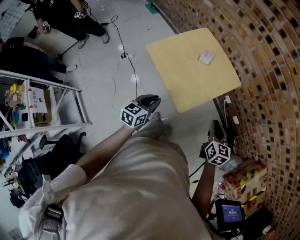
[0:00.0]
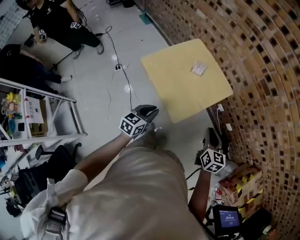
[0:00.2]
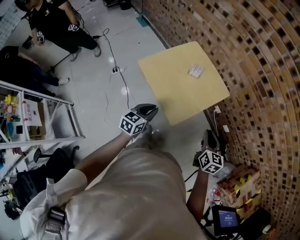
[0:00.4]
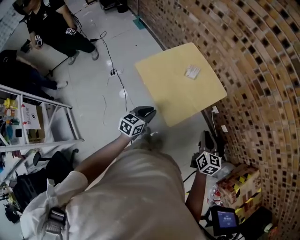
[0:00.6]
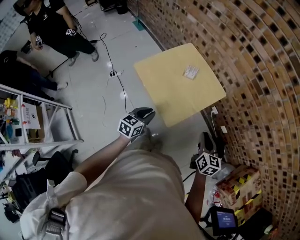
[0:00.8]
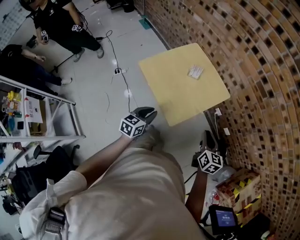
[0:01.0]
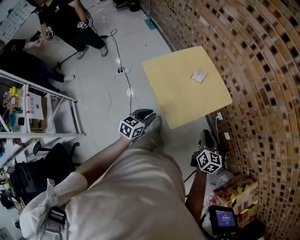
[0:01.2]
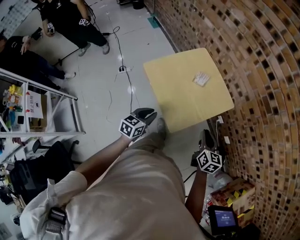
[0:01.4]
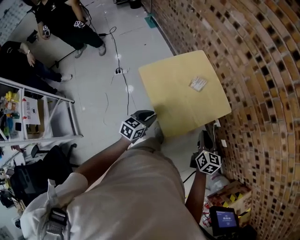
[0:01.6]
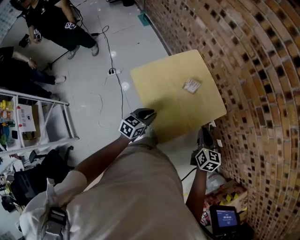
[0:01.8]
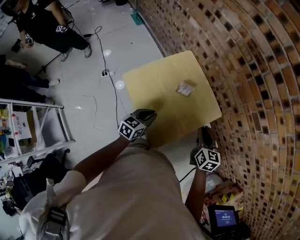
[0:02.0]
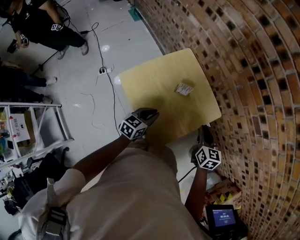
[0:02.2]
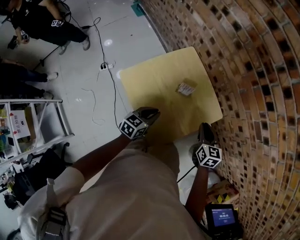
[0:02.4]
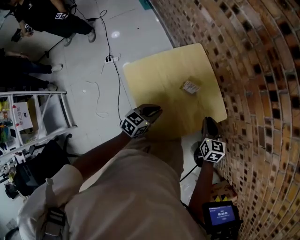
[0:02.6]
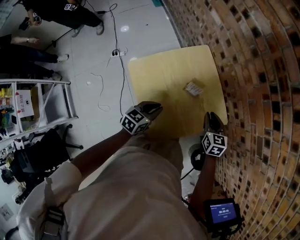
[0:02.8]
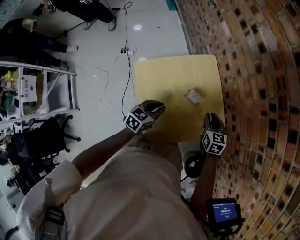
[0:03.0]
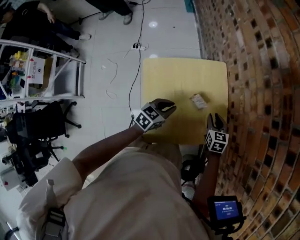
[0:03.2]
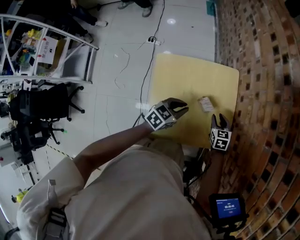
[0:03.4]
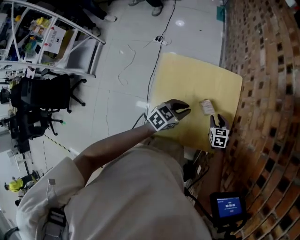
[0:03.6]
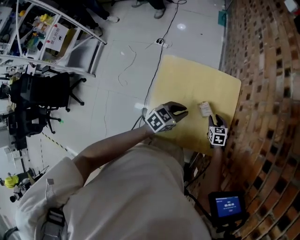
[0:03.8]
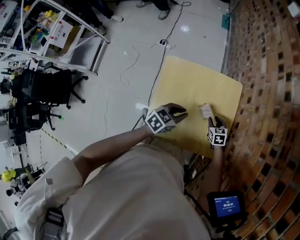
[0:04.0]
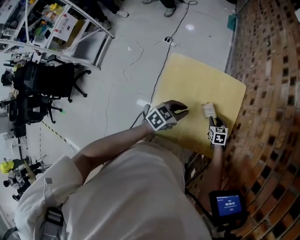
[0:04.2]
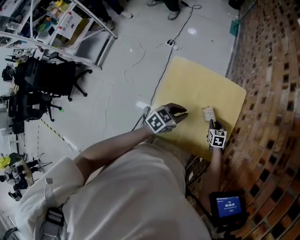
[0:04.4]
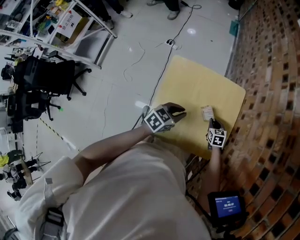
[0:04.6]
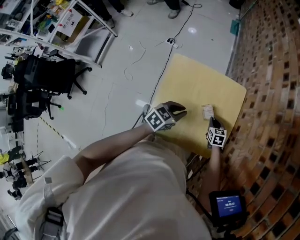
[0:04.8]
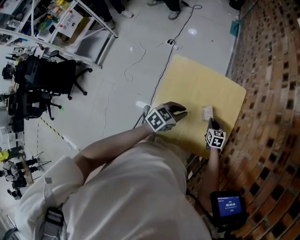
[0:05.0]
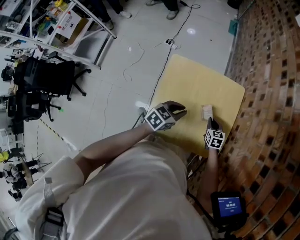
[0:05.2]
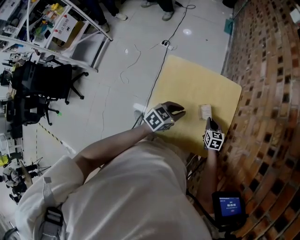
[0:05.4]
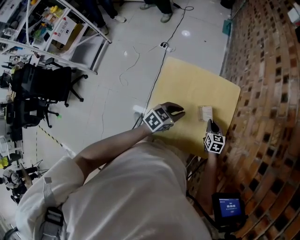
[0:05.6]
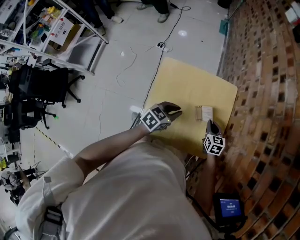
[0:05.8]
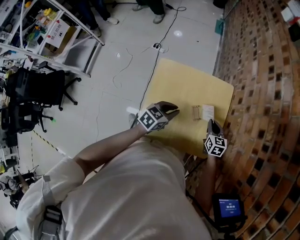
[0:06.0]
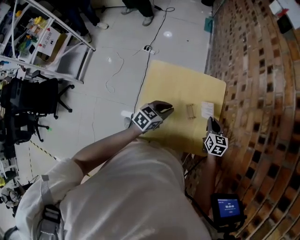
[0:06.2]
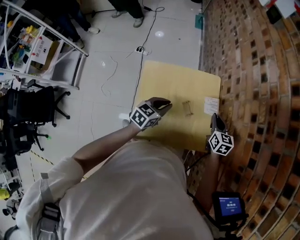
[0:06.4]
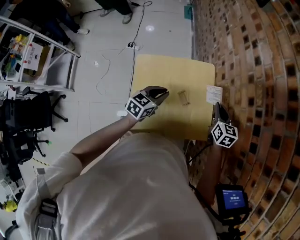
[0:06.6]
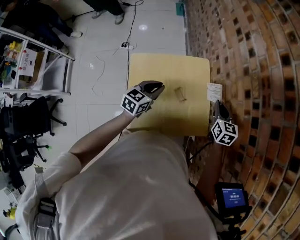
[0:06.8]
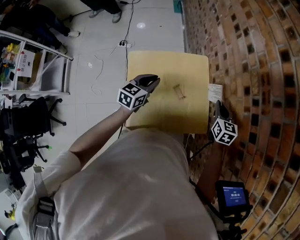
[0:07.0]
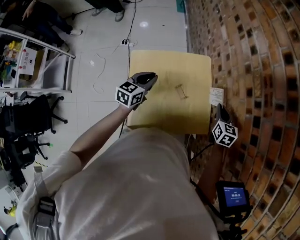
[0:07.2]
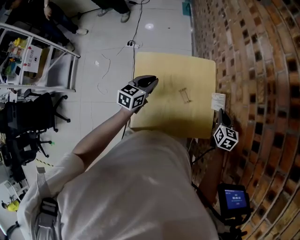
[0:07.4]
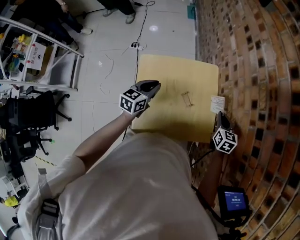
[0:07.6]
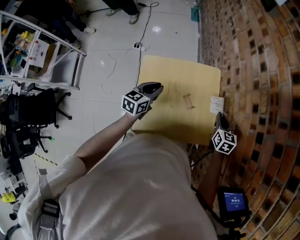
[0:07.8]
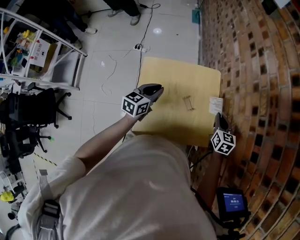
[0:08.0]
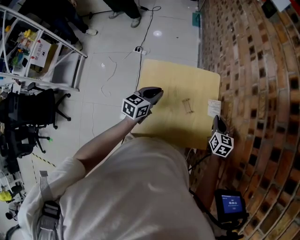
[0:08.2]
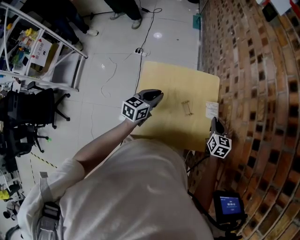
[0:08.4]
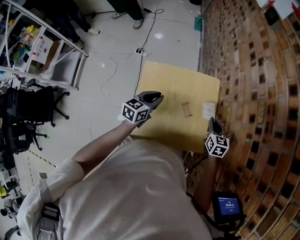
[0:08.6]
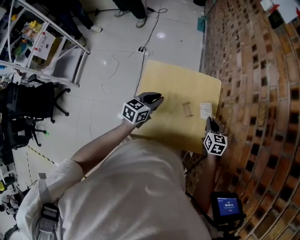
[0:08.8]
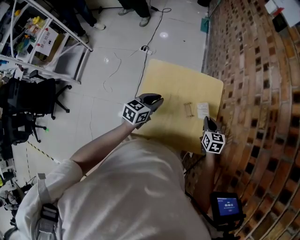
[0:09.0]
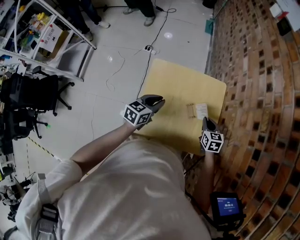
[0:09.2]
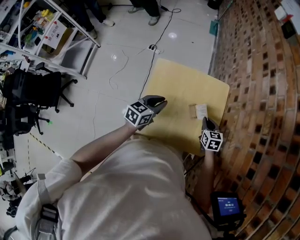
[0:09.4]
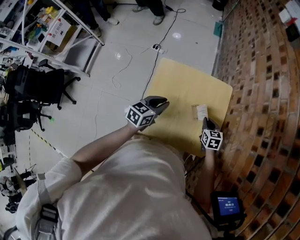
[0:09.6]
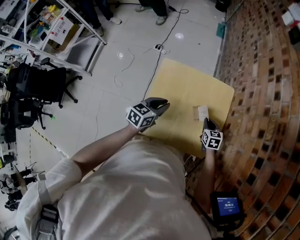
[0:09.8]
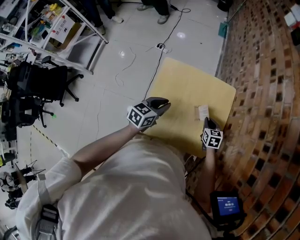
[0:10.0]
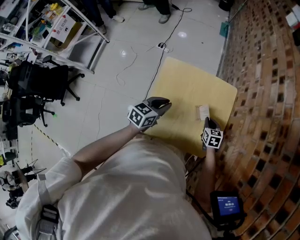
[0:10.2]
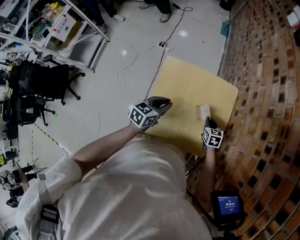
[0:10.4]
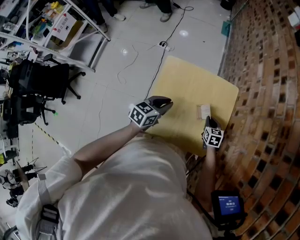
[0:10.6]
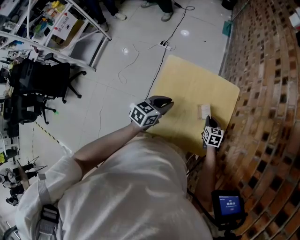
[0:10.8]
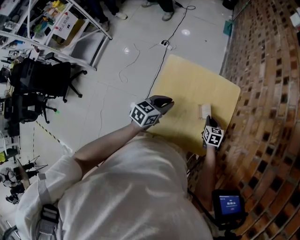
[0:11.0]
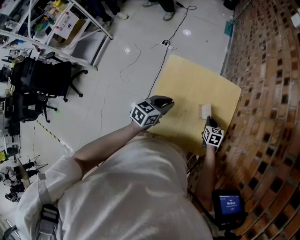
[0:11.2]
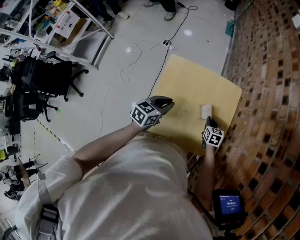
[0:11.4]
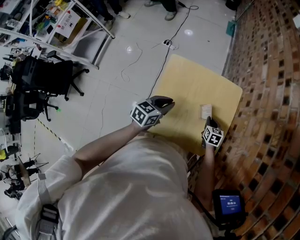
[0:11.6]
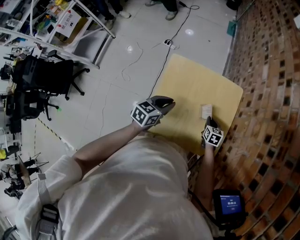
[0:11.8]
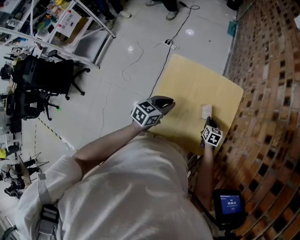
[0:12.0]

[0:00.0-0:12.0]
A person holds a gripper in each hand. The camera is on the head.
0:00.0 to 0:01.6: The grippers both shift forward by some 10 cm.
0:01.6 to 0:03.0: The grippers both shift forward by roughly 25 cm. The right gripper rotates approximately 30 degrees.
0:03.0 to 0:04.4: The right gripper travels downward by approximately 15 cm, and swivels roughly 40 degrees.
0:04.4 to 0:06.0: The right gripper travels upward by roughly 10 cm.
0:06.0 to 0:07.6: The left gripper shifts some 5 cm to the left; the right gripper moves upward and to the right, roughly 15 cm.
0:07.6 to 0:09.0: The right gripper is displaced to the left by roughly 10 cm.
0:09.0 to 0:10.4: The right gripper is displaced downward by some 10 cm.
0:10.4 to 0:12.0: The grippers make only small movements.

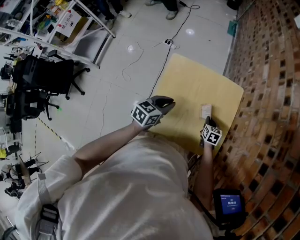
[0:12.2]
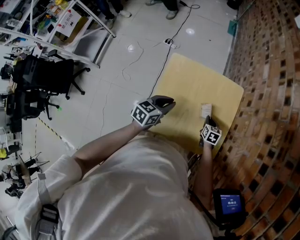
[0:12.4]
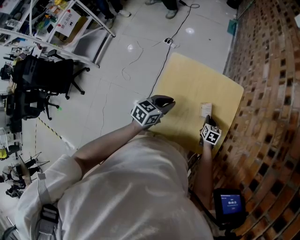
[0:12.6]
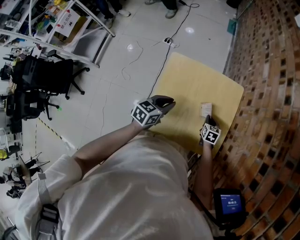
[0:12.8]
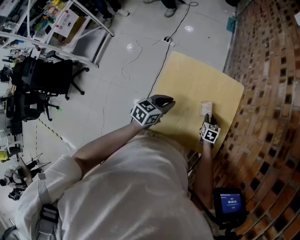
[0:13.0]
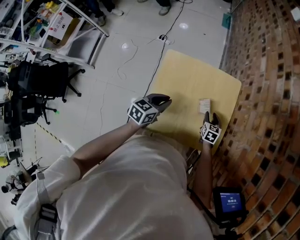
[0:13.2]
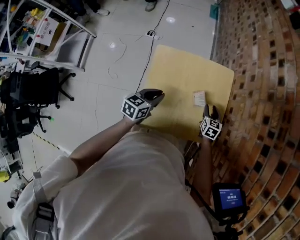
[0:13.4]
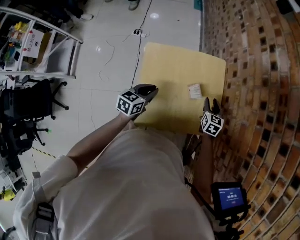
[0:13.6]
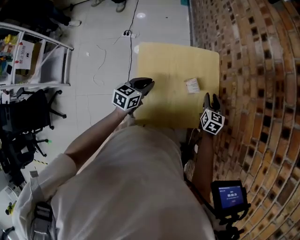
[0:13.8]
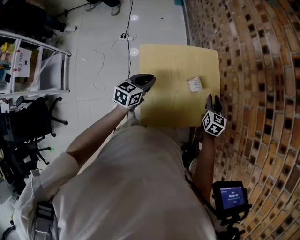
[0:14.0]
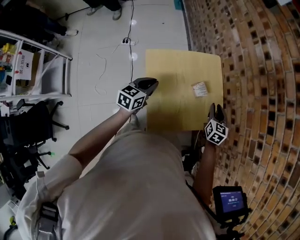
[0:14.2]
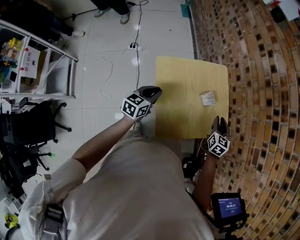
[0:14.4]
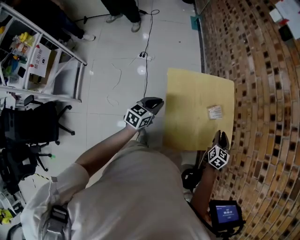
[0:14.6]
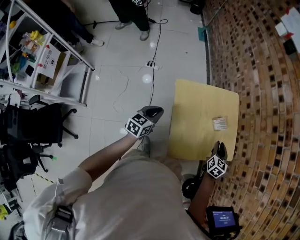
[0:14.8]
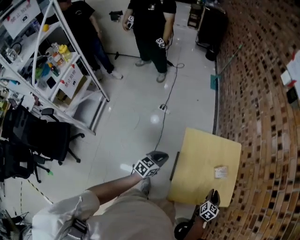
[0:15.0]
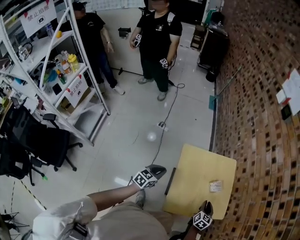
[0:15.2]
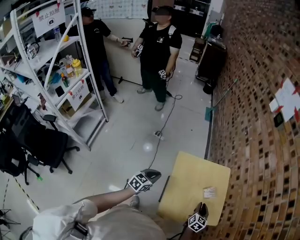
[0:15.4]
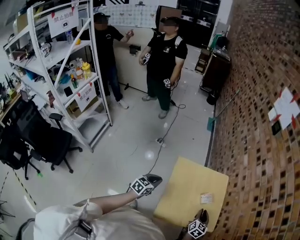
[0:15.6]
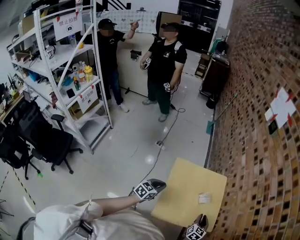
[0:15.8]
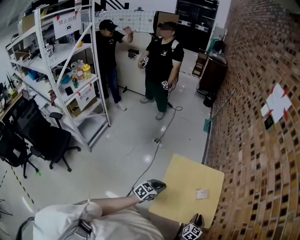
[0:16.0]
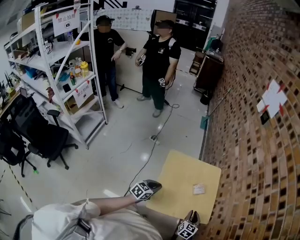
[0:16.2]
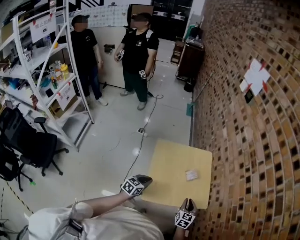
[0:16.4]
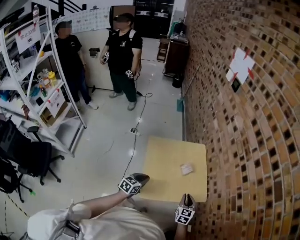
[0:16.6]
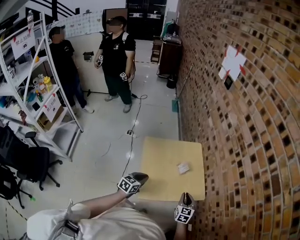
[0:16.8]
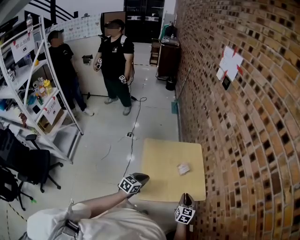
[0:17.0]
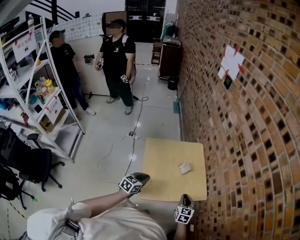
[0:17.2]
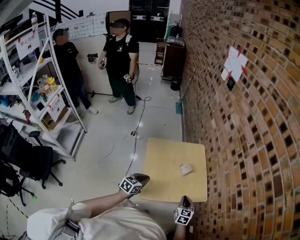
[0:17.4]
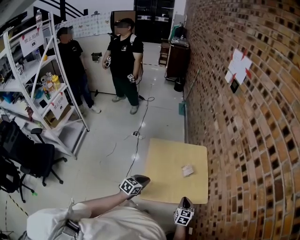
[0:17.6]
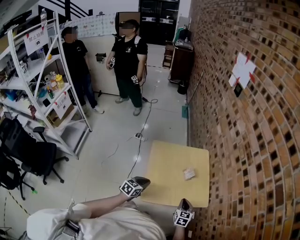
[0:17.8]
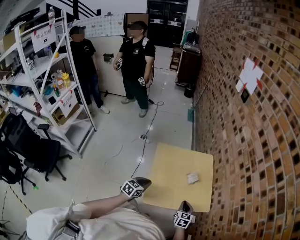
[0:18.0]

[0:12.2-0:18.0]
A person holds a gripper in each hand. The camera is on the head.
0:12.2 to 0:13.6: The right gripper travels upward by about 10 cm, turns by some 20 degrees, and opens up.
0:13.6 to 0:15.0: The left gripper shifts approximately 20 cm to the left and backward. Meanwhile the right gripper travels backward by some 20 cm.
0:15.0 to 0:16.6: The right gripper travels to the right and backward by approximately 10 cm; the left gripper travels to the right by roughly 20 cm.
0:16.6 to 0:18.0: The right gripper moves roughly 5 cm.

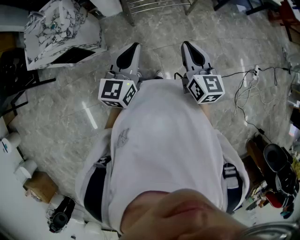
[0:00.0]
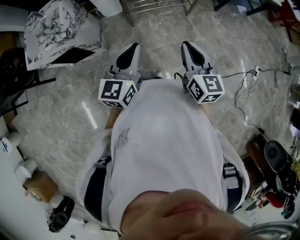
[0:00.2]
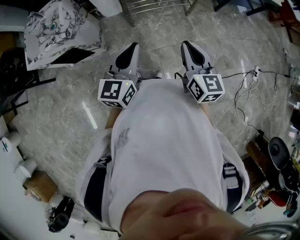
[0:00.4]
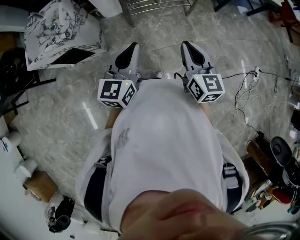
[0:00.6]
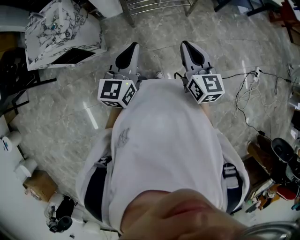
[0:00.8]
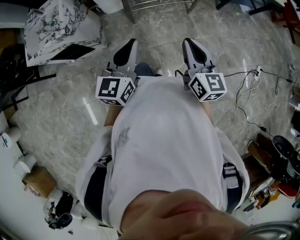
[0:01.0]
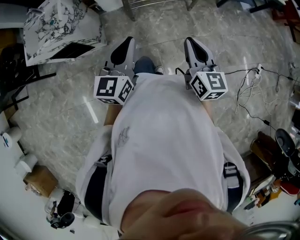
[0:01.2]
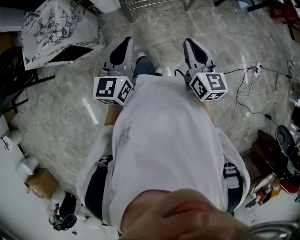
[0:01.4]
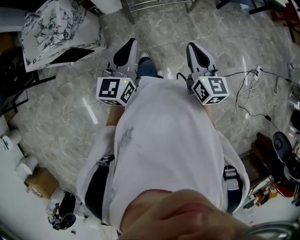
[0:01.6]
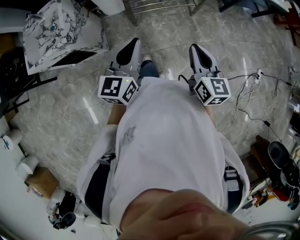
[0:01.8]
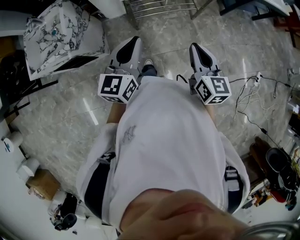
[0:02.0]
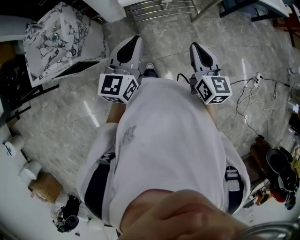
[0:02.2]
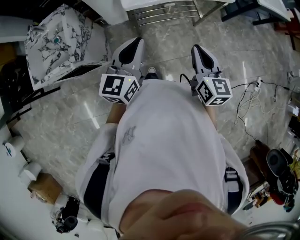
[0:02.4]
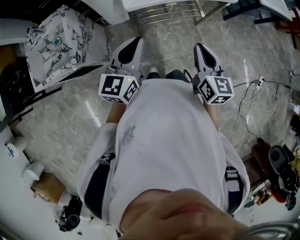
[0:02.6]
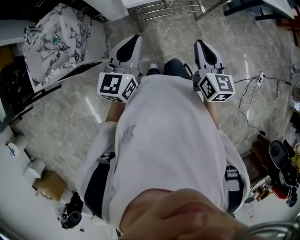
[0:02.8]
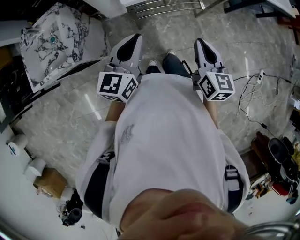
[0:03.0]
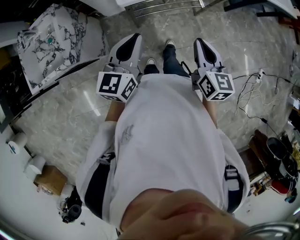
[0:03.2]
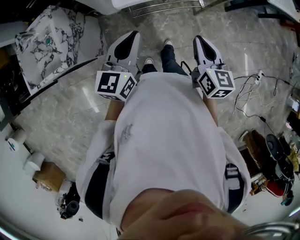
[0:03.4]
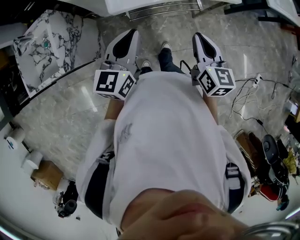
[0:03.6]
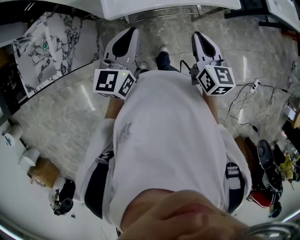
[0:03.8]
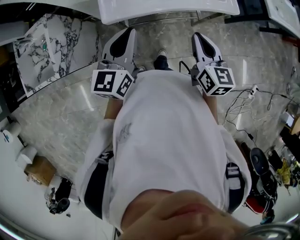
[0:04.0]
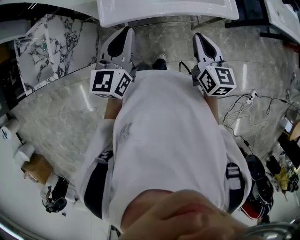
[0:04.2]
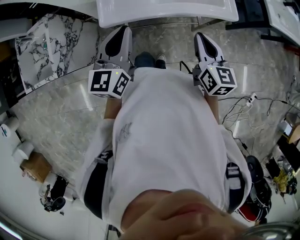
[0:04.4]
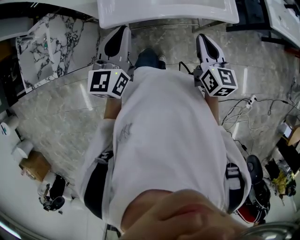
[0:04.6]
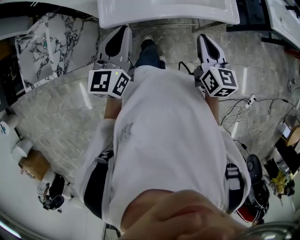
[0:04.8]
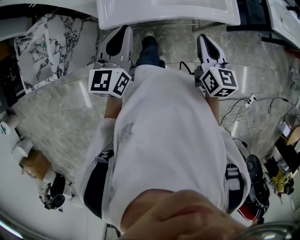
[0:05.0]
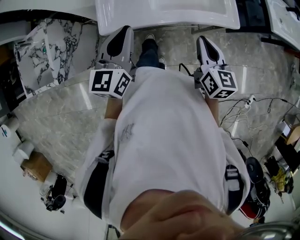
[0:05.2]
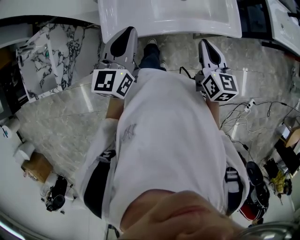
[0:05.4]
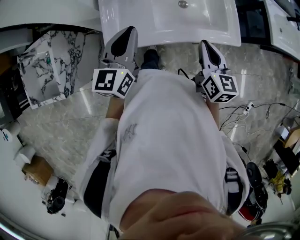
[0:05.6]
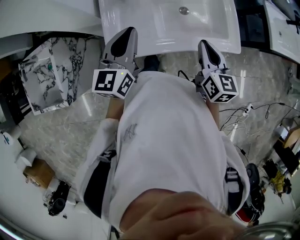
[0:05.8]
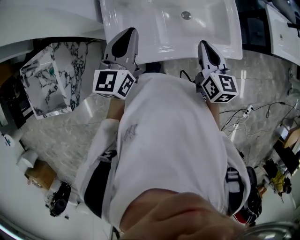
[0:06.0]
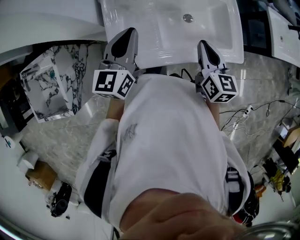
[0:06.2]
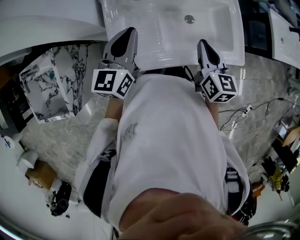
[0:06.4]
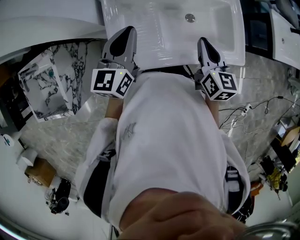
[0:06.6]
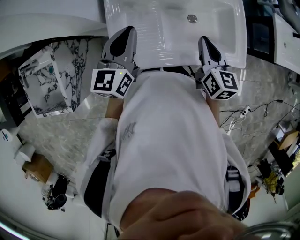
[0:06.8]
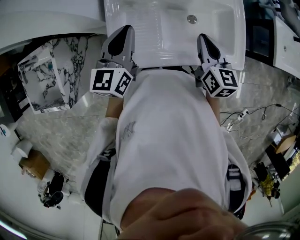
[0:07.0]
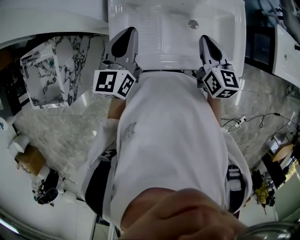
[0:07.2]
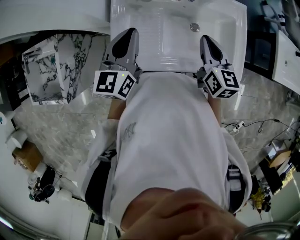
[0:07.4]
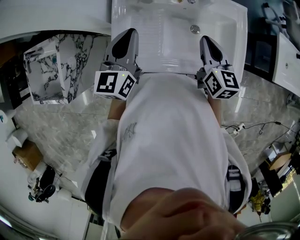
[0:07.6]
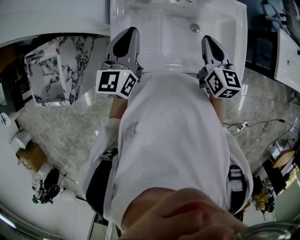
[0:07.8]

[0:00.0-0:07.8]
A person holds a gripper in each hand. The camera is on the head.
0:00.0 to 0:01.6: The grippers make only small movements.
0:01.6 to 0:03.2: Both grippers travel together forward, some 20 cm.
0:03.2 to 0:04.6: The two grippers go approximately 20 cm forward and to the right.
0:04.6 to 0:06.2: Both grippers travel together forward, about 25 cm.
0:06.2 to 0:07.8: The right gripper moves forward, about 5 cm.
